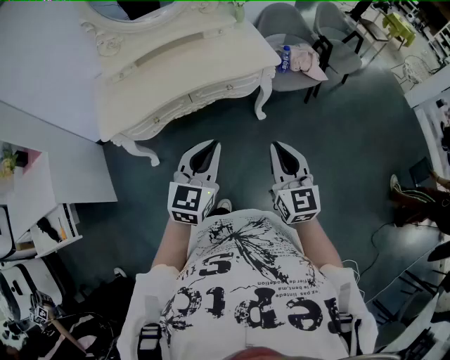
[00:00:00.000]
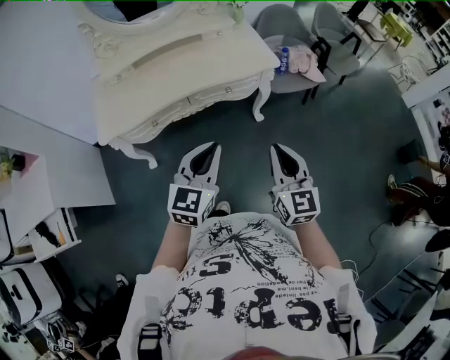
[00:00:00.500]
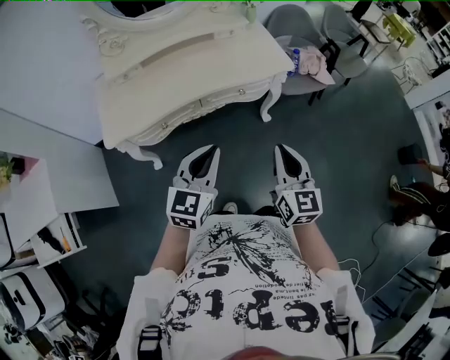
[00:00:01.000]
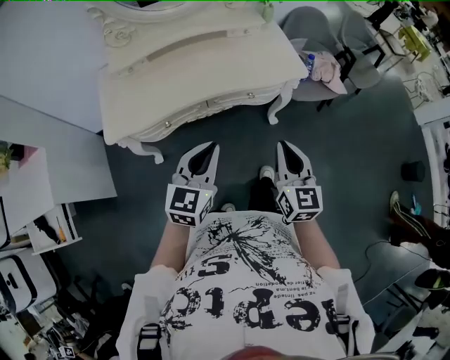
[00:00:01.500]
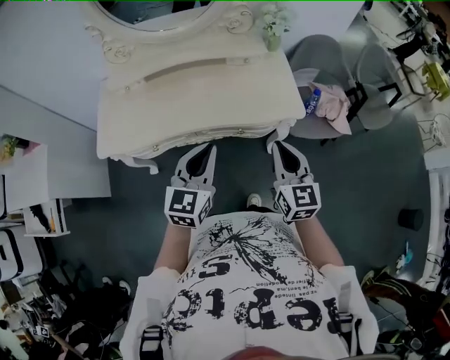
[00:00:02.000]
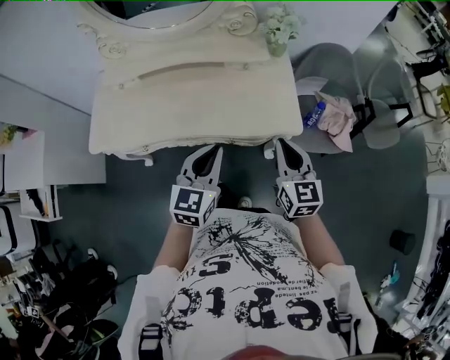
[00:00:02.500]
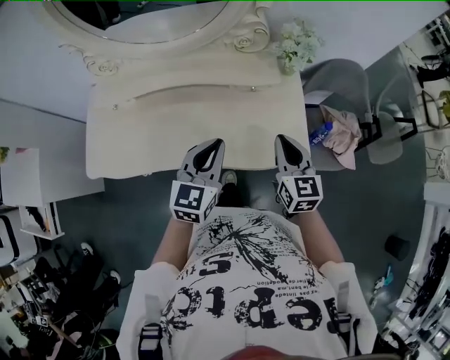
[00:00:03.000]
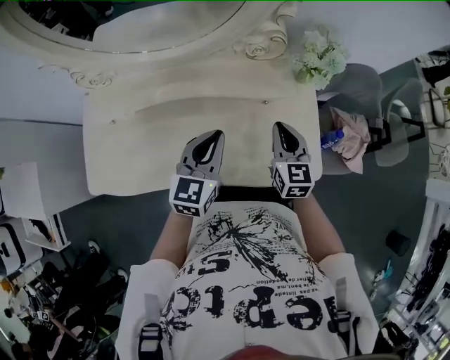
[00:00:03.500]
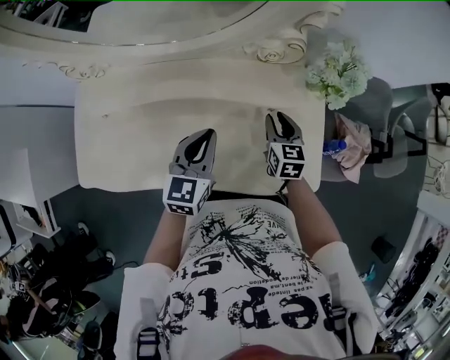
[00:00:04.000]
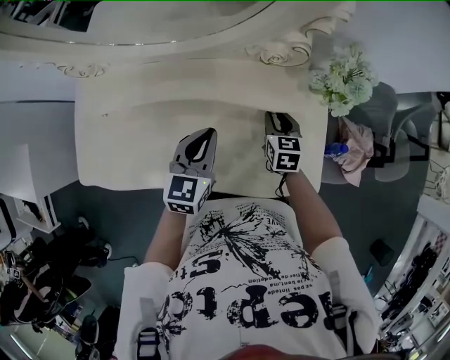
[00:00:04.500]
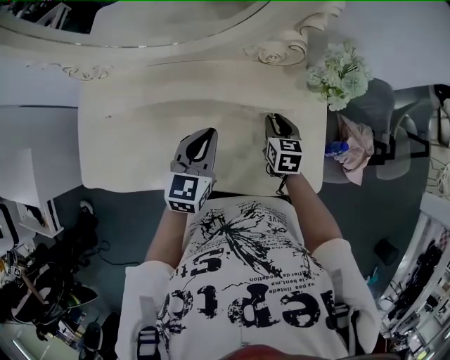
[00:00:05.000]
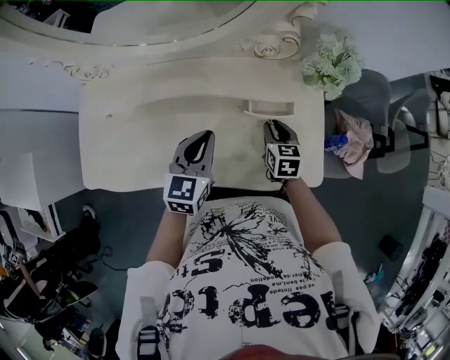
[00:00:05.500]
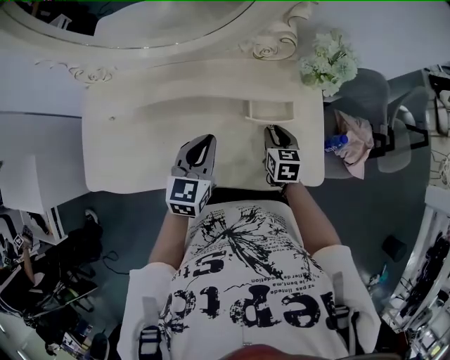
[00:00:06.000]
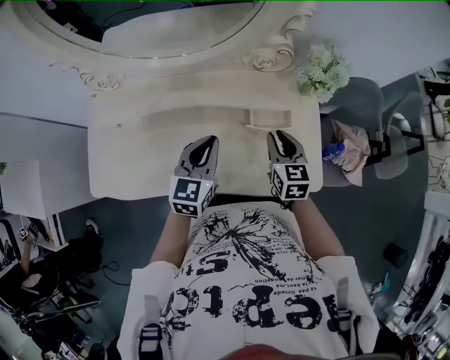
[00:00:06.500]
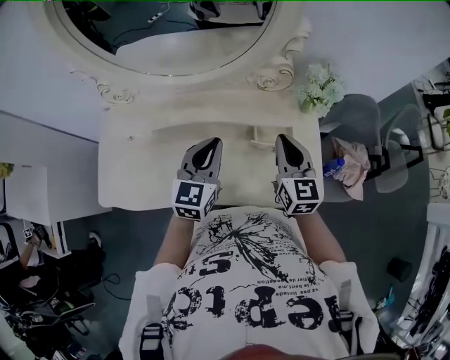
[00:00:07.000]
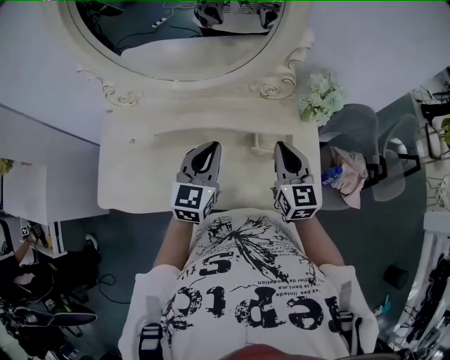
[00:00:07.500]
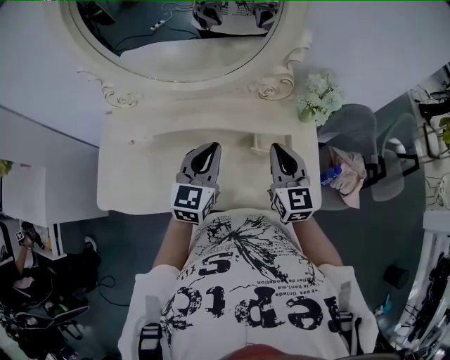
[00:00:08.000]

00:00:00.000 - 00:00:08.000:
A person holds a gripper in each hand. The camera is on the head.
00:00:00.000 - 00:00:02.000: The grippers both shift forward by some 25 cm.
00:00:02.000 - 00:00:04.000: The right gripper moves forward and downward, approximately 50 cm, swivels approximately 20 degrees, and opens, while the left gripper goes approximately 35 cm forward.
00:00:04.000 - 00:00:06.000: The right gripper is displaced backward by approximately 5 cm.
00:00:06.000 - 00:00:08.000: The right gripper is displaced upward by approximately 20 cm, angles its fingers upward, by about 30 degrees, and closes its fingers, while the left gripper goes some 10 cm upward.

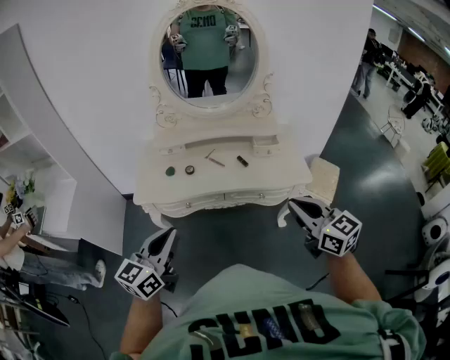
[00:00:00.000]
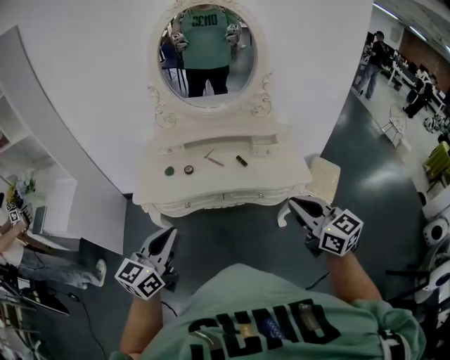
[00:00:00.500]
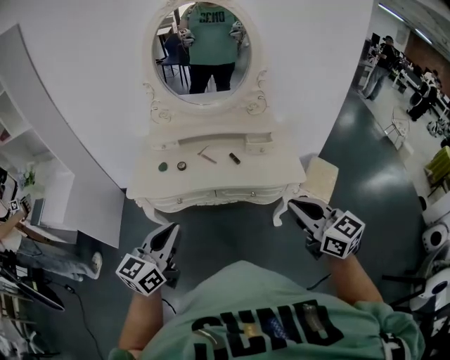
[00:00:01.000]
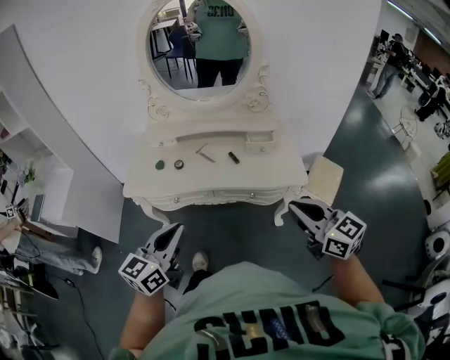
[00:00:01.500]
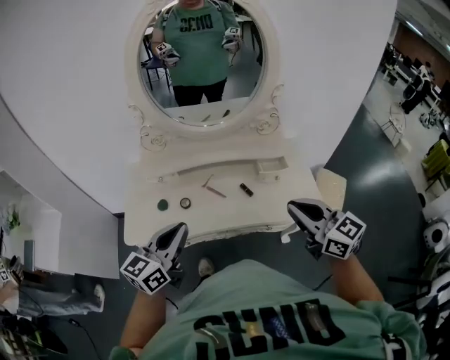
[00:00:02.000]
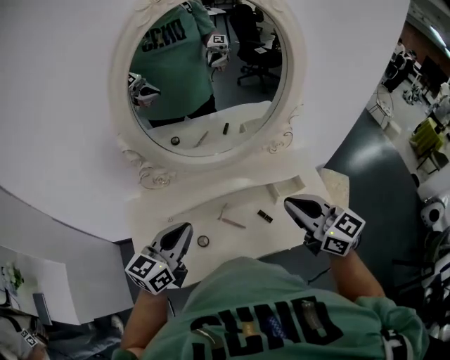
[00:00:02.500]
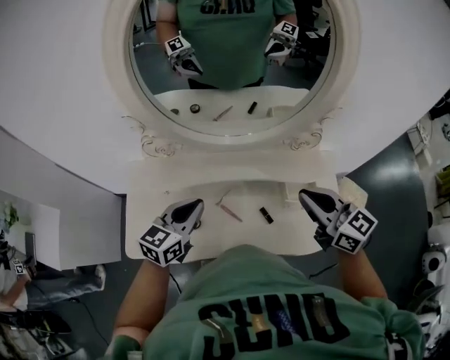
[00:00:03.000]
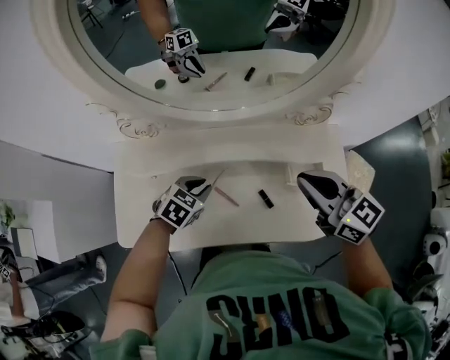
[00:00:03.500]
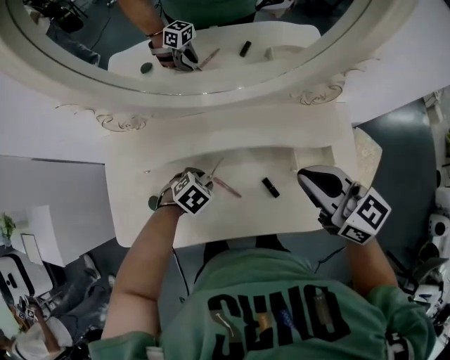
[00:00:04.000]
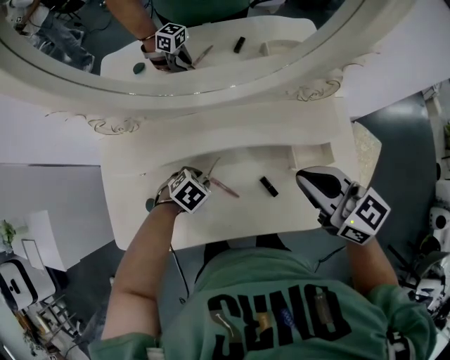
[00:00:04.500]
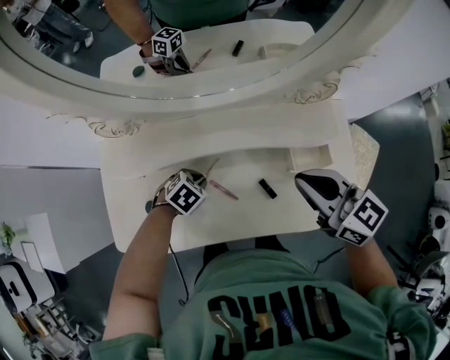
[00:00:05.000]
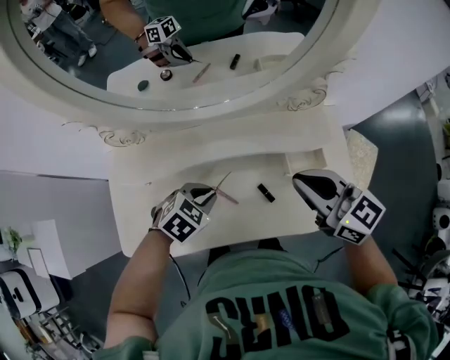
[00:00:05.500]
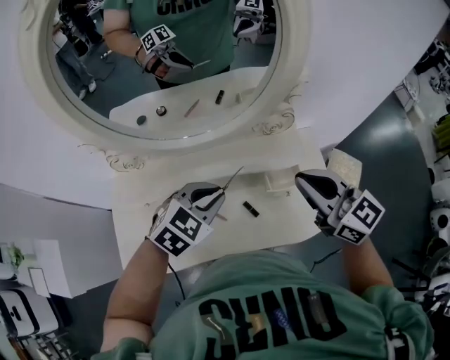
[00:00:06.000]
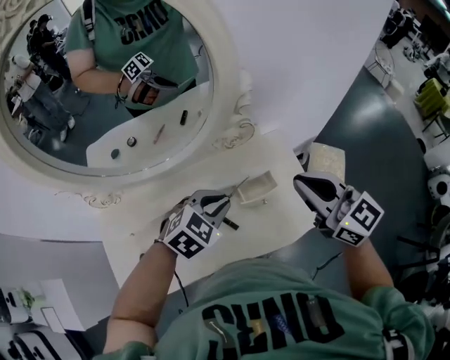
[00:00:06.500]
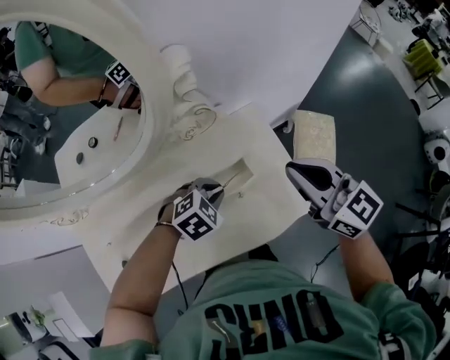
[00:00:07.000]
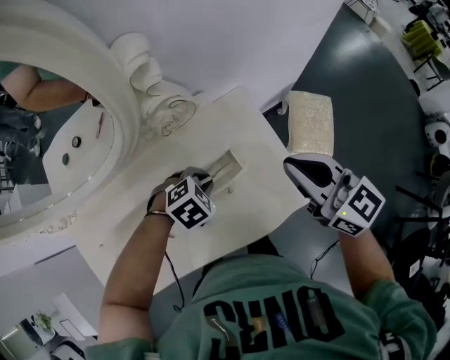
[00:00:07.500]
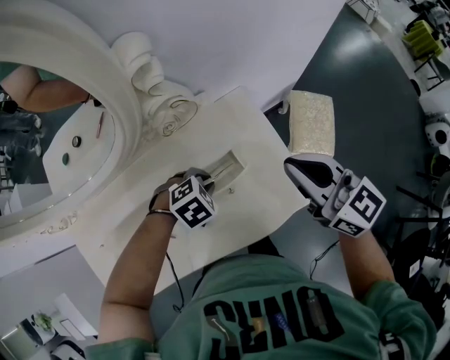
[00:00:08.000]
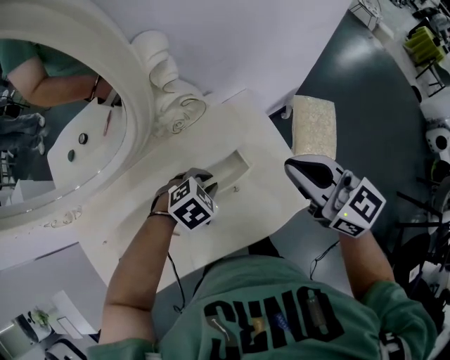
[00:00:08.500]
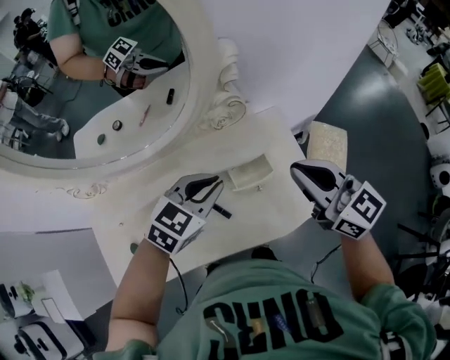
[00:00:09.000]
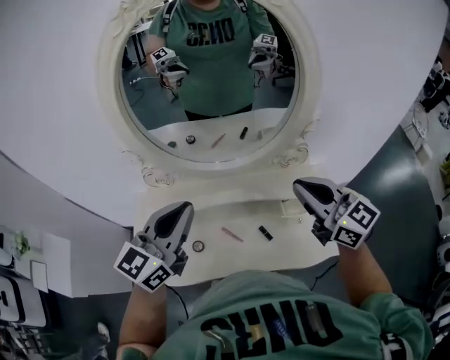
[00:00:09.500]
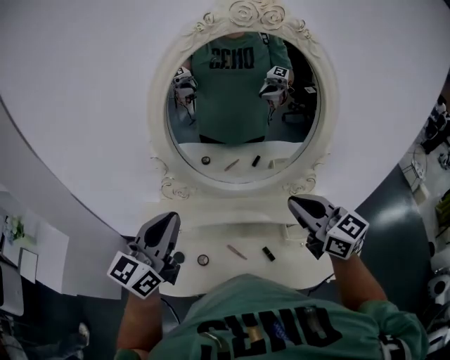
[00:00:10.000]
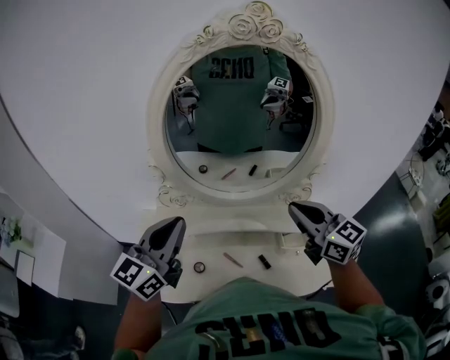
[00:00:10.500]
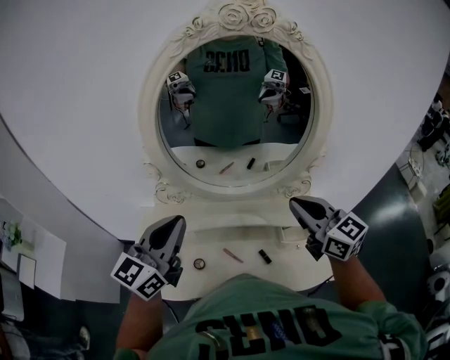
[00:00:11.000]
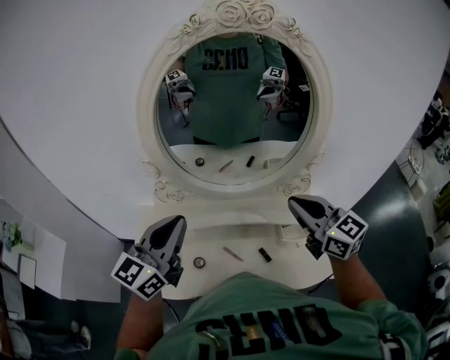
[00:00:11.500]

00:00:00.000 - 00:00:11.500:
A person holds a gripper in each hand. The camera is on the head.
00:00:00.000 - 00:00:02.000: Both grippers travel together forward, about 20 cm.
00:00:02.000 - 00:00:04.000: The right gripper travels forward by roughly 25 cm. The left gripper heads downward and forward, covering approximately 40 cm, points its fingers approximately 70 degrees further downward, and opens up.
00:00:04.000 - 00:00:06.000: The right gripper heads upward and to the right, covering approximately 10 cm, while the left gripper travels upward and to the right by roughly 30 cm, tilts its fingers some 30 degrees upward, and closes up.
00:00:06.000 - 00:00:07.500: The right gripper goes about 20 cm to the right and downward. Meanwhile the left gripper shifts some 30 cm downward, to the right and forward, and rotates roughly 40 degrees.
00:00:07.500 - 00:00:09.500: The right gripper moves about 30 cm, and changes its angle by approximately 20 degrees, while the left gripper goes about 40 cm upward, and tilts its fingers about 70 degrees upward.
00:00:09.500 - 00:00:11.500: The left gripper moves to the left, roughly 5 cm.

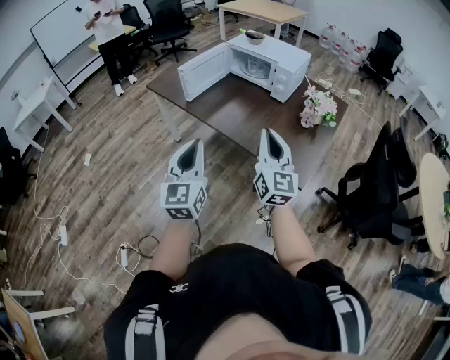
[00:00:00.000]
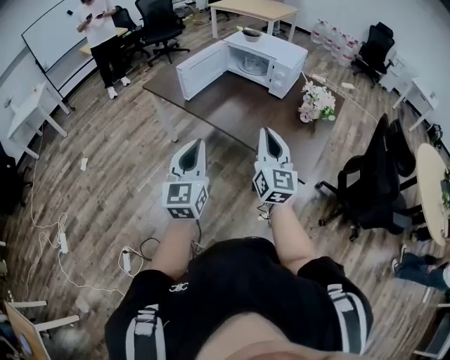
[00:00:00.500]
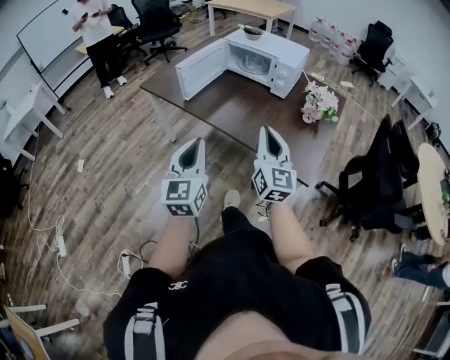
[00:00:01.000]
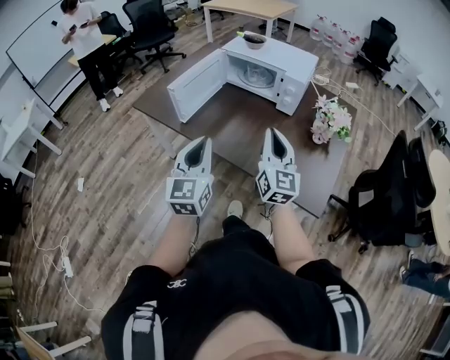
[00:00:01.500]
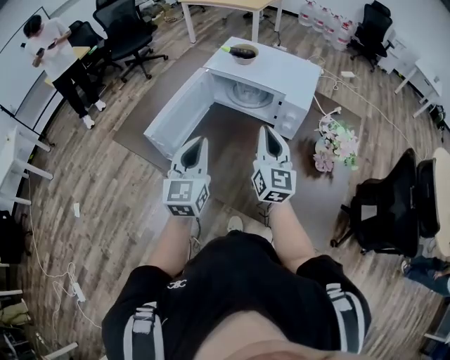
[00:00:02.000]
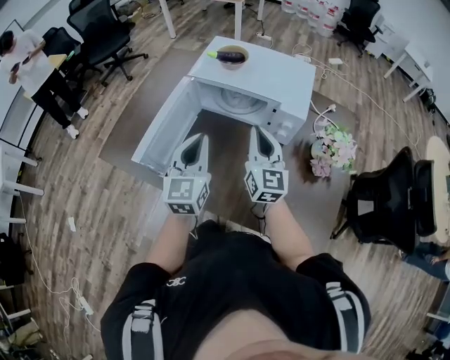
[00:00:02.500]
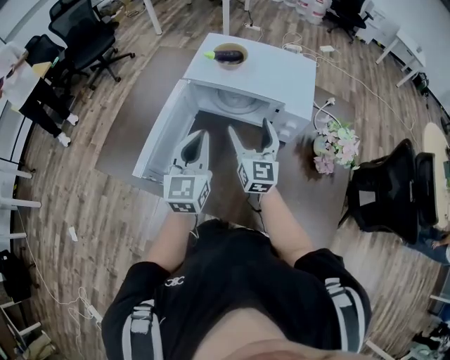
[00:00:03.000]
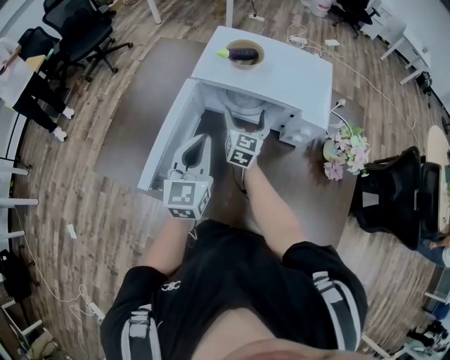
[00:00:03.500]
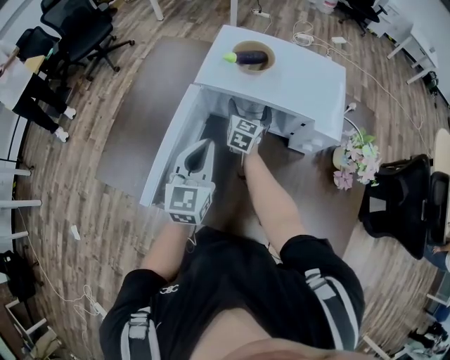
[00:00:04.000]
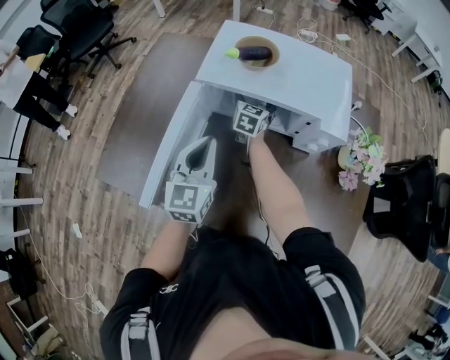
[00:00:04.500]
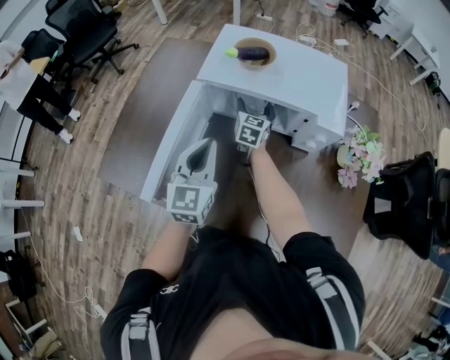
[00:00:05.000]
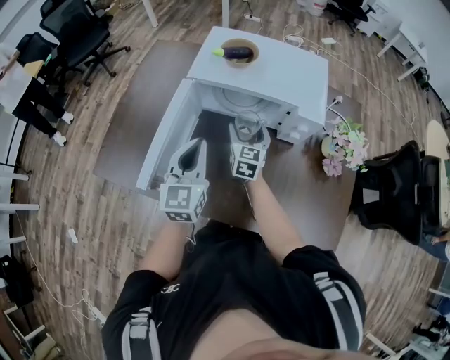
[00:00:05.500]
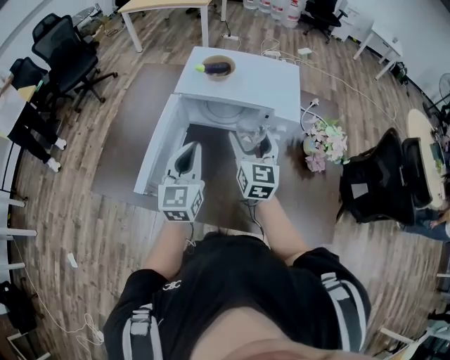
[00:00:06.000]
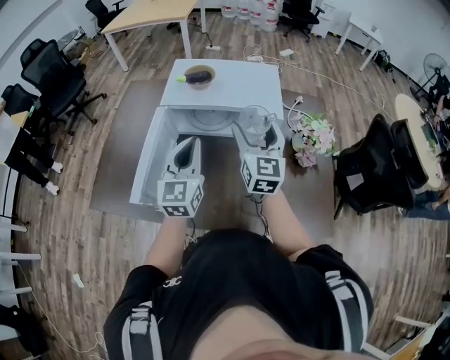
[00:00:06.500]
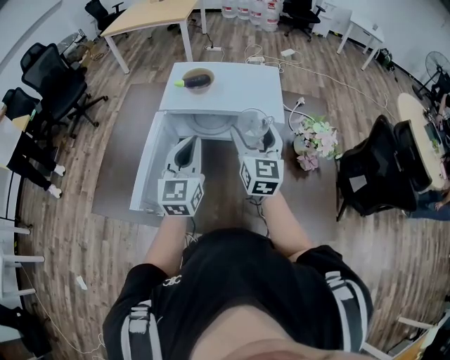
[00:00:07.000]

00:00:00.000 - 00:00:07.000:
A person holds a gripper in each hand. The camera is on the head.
00:00:00.000 - 00:00:02.000: The two grippers travel together, forward, approximately 50 cm.
00:00:02.000 - 00:00:03.500: The left gripper travels forward by approximately 20 cm. Meanwhile the right gripper heads forward, downward and to the left, covering some 30 cm, swivels approximately 20 degrees, and opens up.
00:00:03.500 - 00:00:05.000: The right gripper shifts about 10 cm forward and downward.
00:00:05.000 - 00:00:07.000: The right gripper travels upward, backward and to the right by about 35 cm, and rotates roughly 20 degrees; the left gripper moves upward and to the right, approximately 15 cm.
